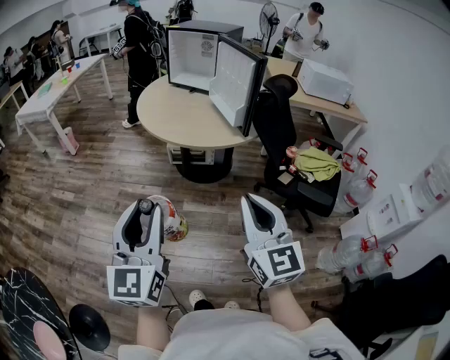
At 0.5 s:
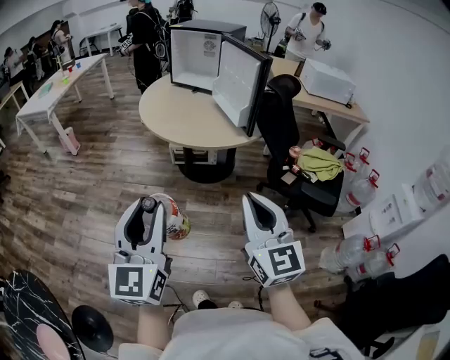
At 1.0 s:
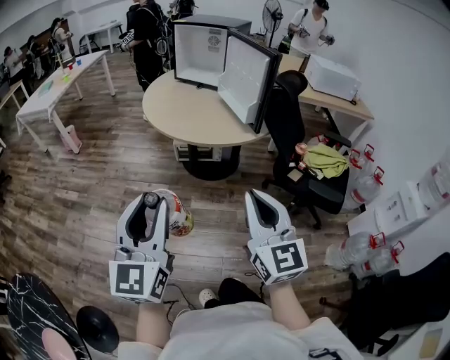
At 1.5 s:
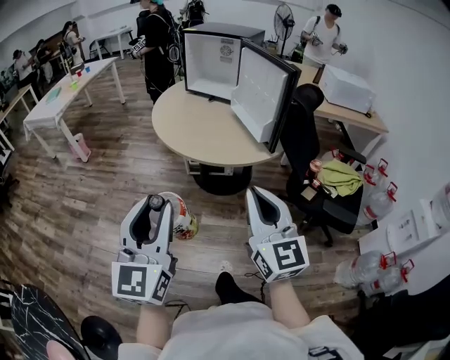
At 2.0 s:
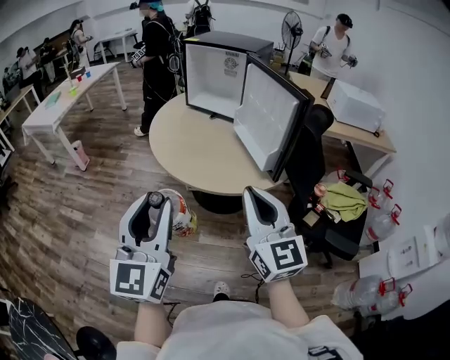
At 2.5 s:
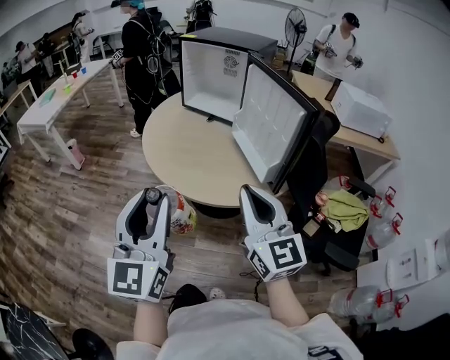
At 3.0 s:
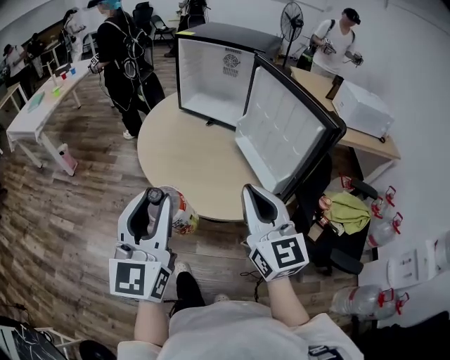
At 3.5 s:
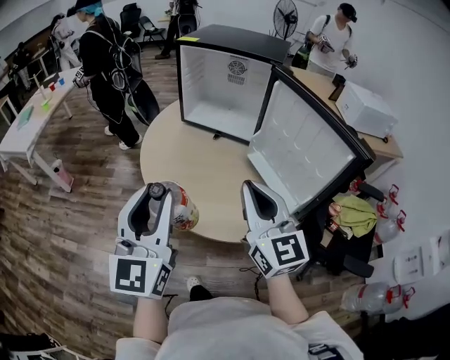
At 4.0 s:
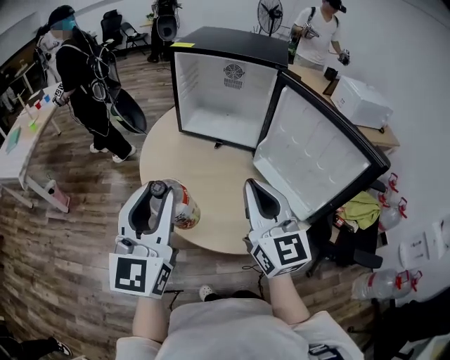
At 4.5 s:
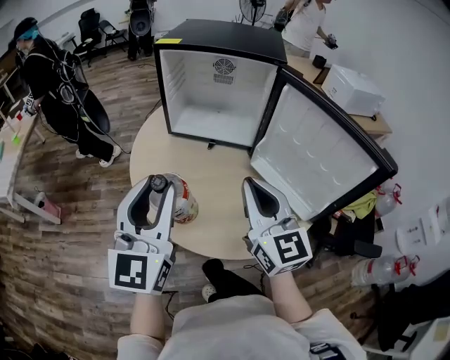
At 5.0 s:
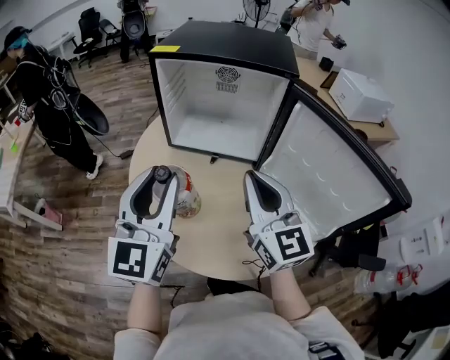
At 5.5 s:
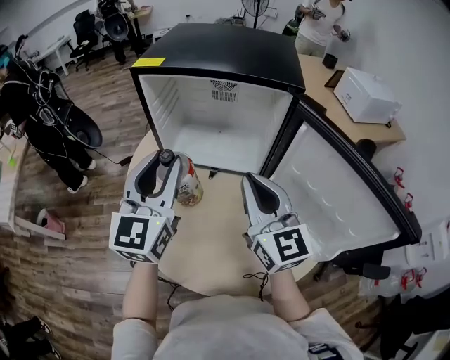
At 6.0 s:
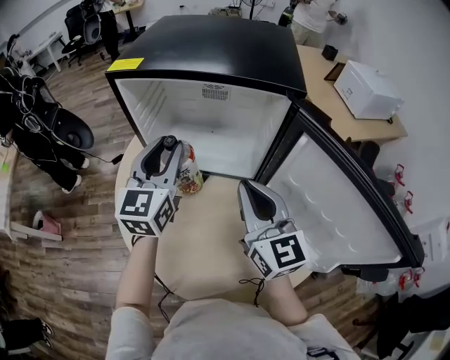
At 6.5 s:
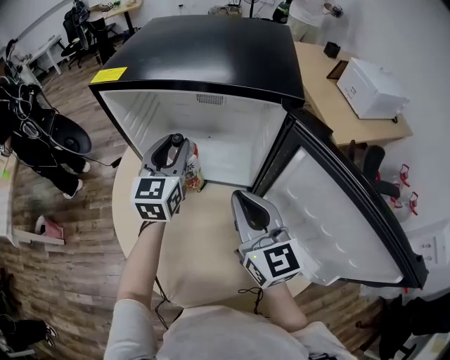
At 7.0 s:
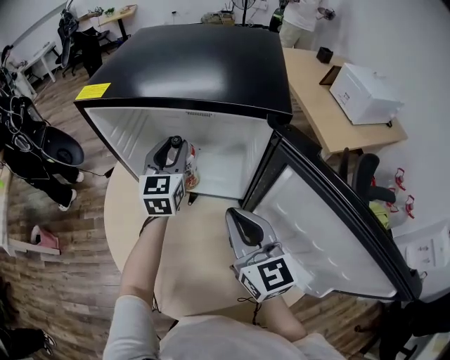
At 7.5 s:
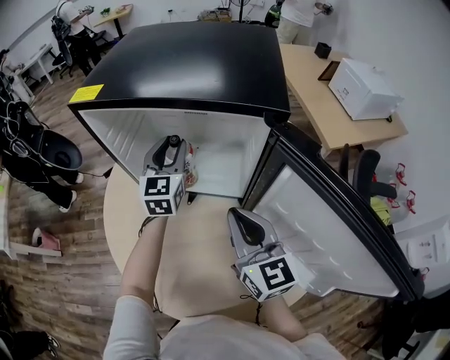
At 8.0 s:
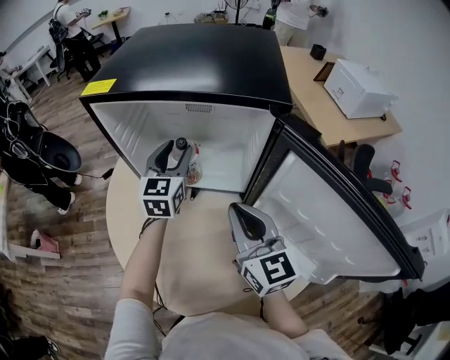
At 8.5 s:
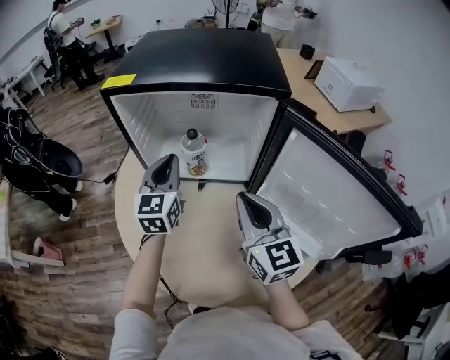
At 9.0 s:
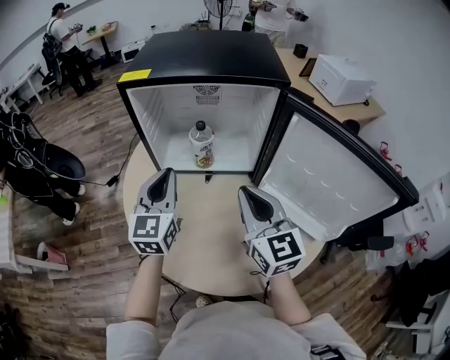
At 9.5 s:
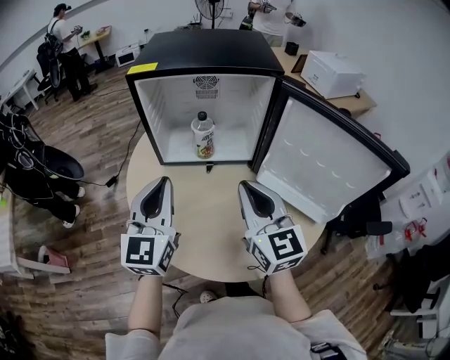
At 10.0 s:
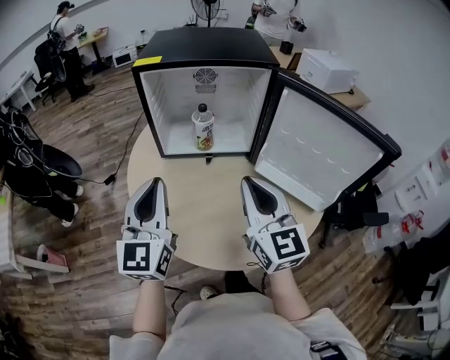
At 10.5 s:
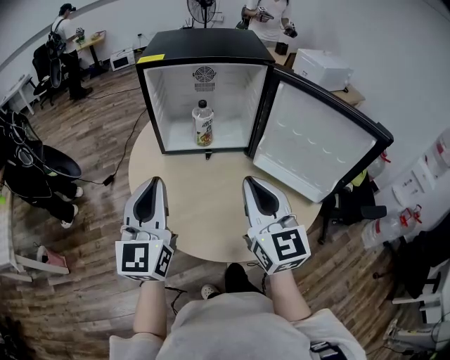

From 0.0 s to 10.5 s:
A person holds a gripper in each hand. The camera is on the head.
From 0.0 s to 2.0 s: The two grippers go about 25 cm forward.
From 2.0 s to 4.0 s: The two grippers go about 35 cm forward.
From 4.0 s to 6.5 s: The right gripper is displaced forward by roughly 30 cm; the left gripper travels forward by roughly 50 cm.
From 6.5 s to 8.5 s: The left gripper ends up about 5 cm from where it was, and closes.
From 8.5 s to 10.5 s: The right gripper moves backward, approximately 20 cm. Meanwhile the left gripper moves backward, approximately 30 cm.

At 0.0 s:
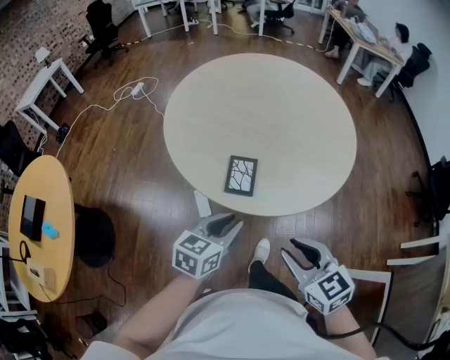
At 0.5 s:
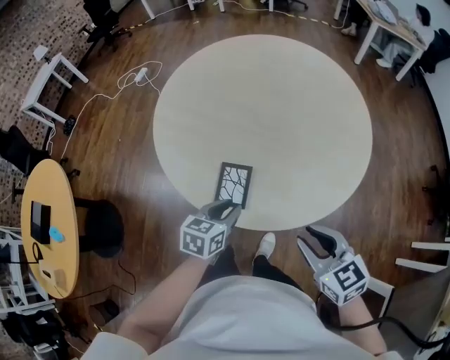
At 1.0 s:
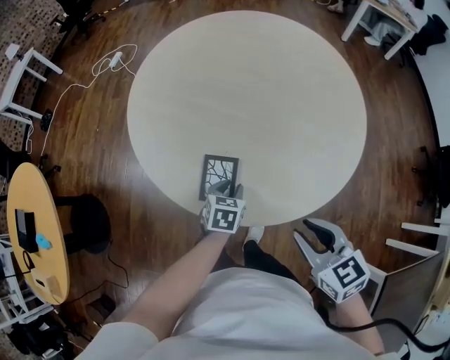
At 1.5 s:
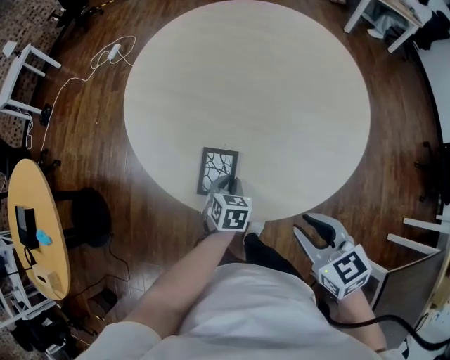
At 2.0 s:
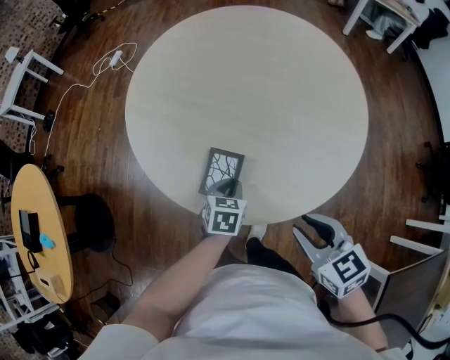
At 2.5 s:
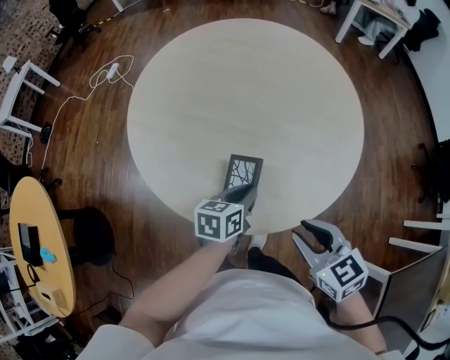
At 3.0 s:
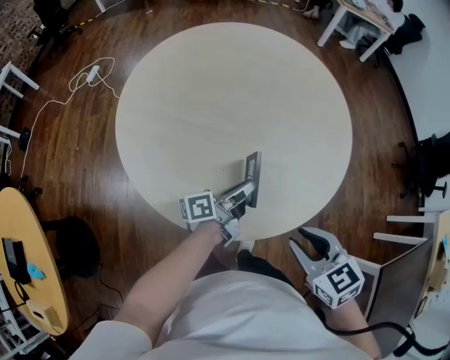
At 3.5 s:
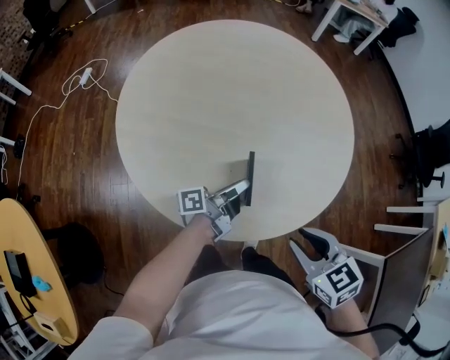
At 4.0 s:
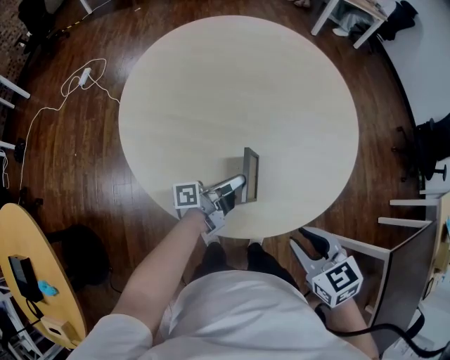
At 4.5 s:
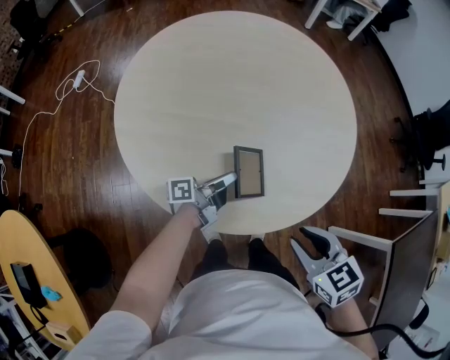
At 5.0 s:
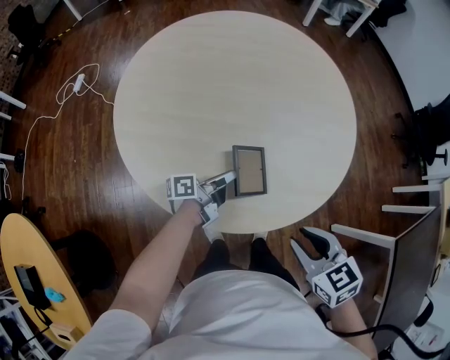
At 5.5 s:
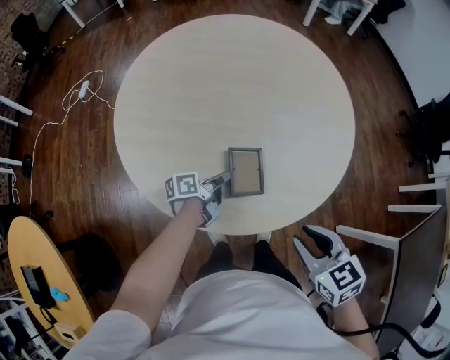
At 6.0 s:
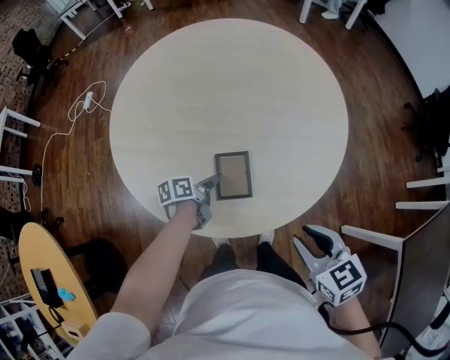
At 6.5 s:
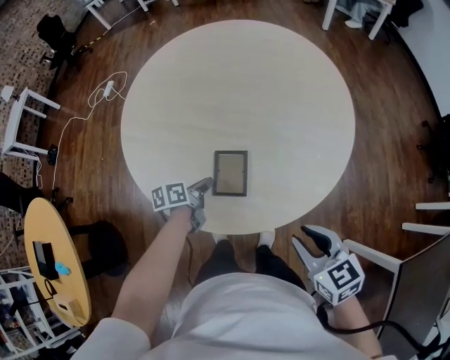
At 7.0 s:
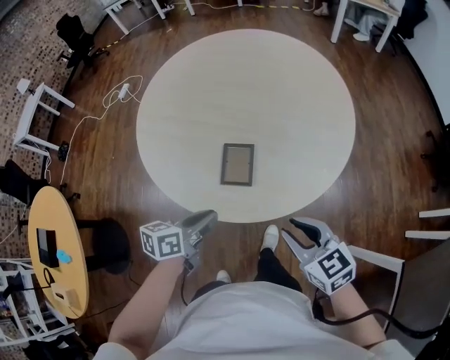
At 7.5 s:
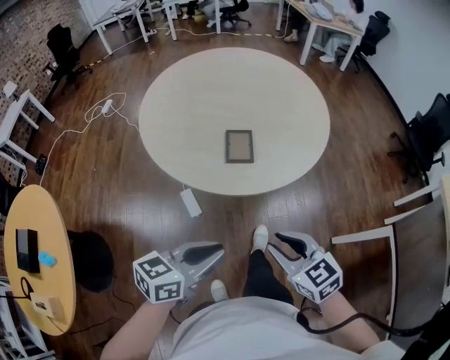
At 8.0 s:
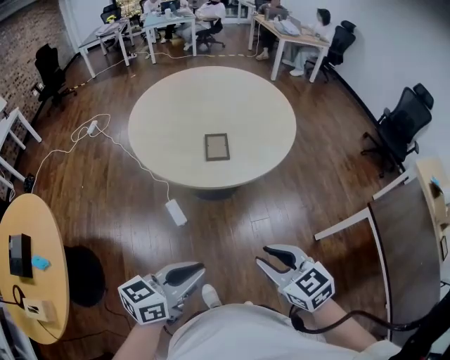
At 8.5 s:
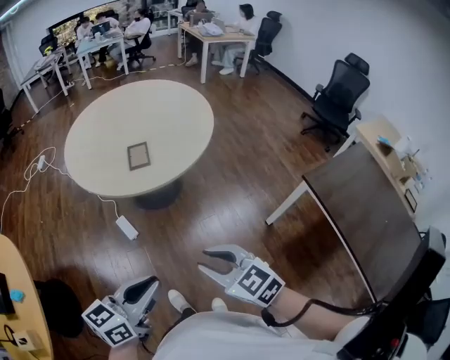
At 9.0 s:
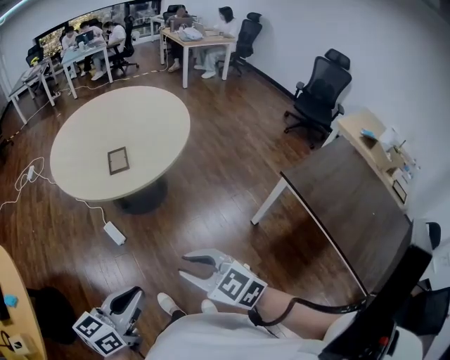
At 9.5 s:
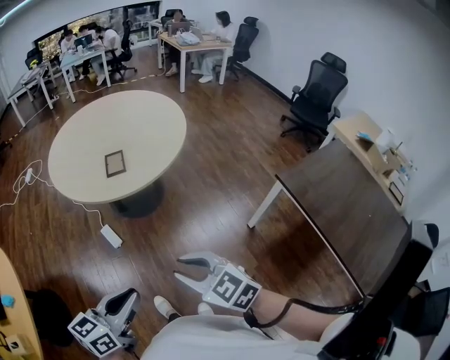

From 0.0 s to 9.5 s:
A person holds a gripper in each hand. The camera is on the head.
From 0.0 s to 2.0 s: The left gripper shifts roughly 20 cm downward, forward and to the right, and swivels approximately 30 degrees, while the right gripper travels forward and to the right by approximately 15 cm.
From 2.0 s to 4.0 s: The right gripper moves roughly 5 cm; the left gripper goes some 5 cm upward, and points its fingers roughly 60 degrees further upward.
From 4.0 s to 5.5 s: The left gripper goes roughly 5 cm downward, and swivels approximately 30 degrees.
From 5.5 s to 7.5 s: The right gripper heads backward, covering approximately 15 cm; the left gripper is displaced backward and upward by some 40 cm, and rolls clockwise, seen from behind, by about 50 degrees.
From 7.5 s to 9.5 s: The two grippers go about 20 cm backward.

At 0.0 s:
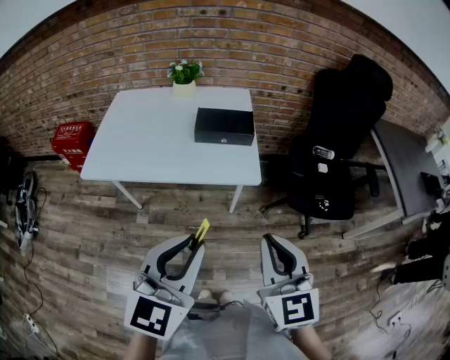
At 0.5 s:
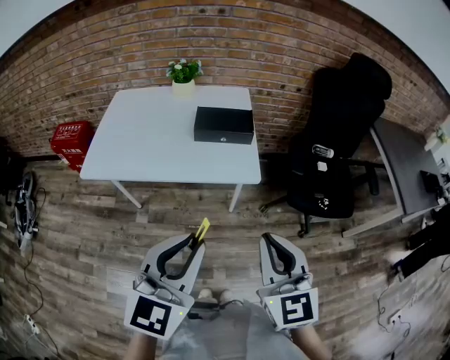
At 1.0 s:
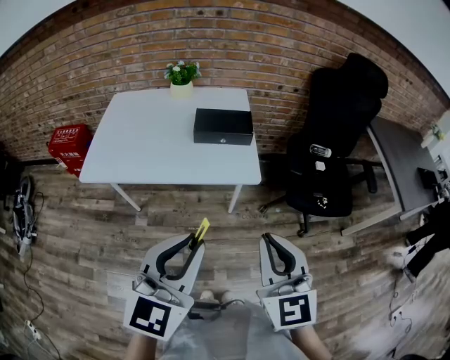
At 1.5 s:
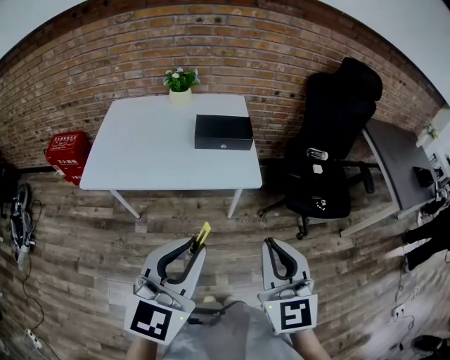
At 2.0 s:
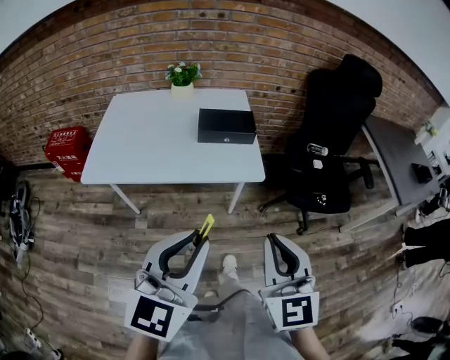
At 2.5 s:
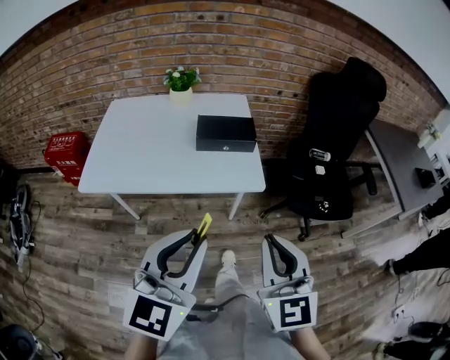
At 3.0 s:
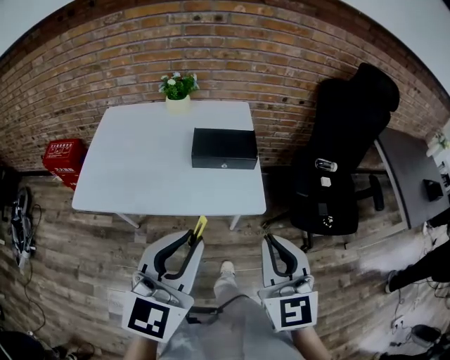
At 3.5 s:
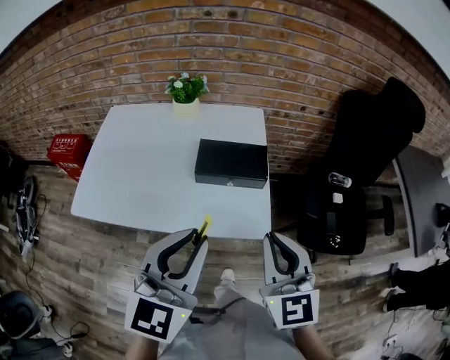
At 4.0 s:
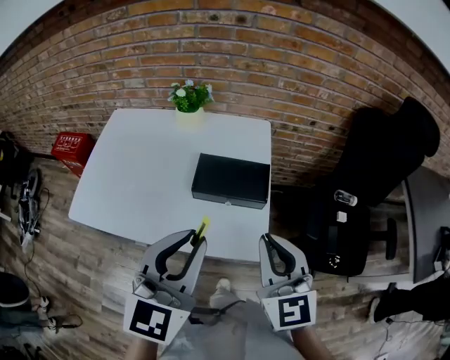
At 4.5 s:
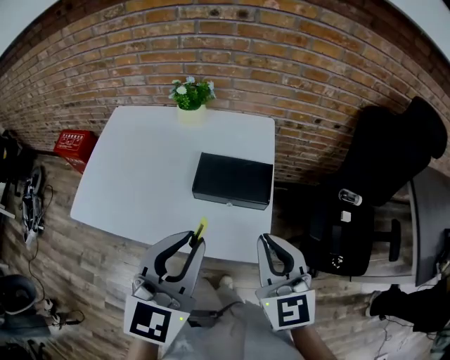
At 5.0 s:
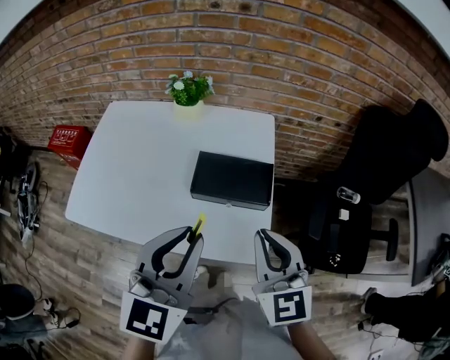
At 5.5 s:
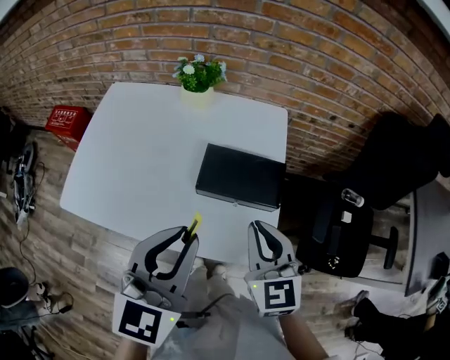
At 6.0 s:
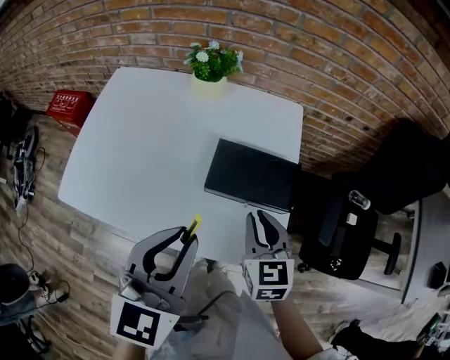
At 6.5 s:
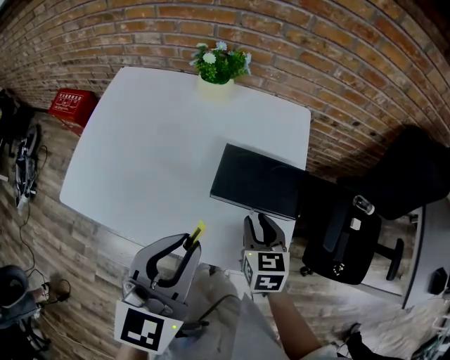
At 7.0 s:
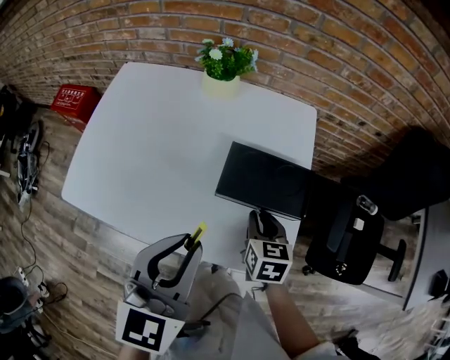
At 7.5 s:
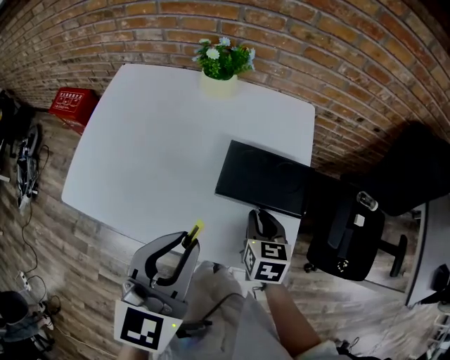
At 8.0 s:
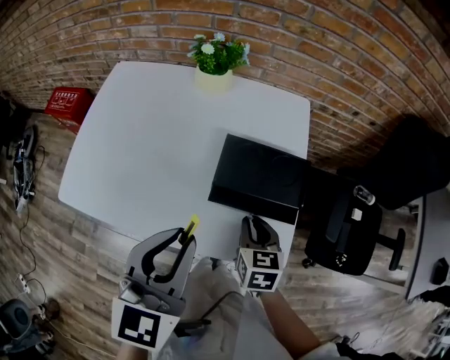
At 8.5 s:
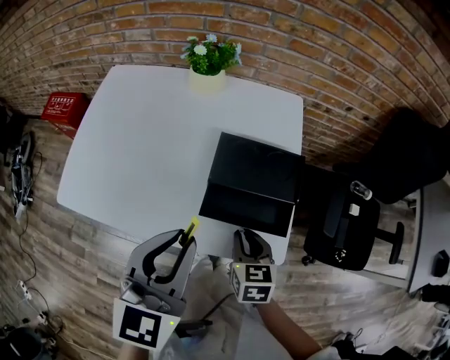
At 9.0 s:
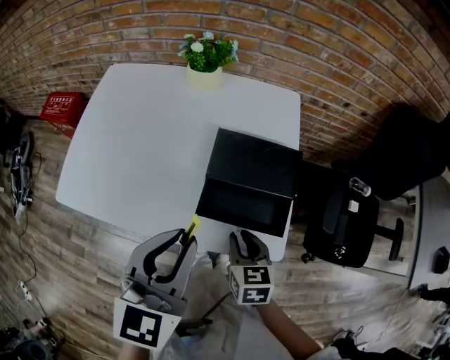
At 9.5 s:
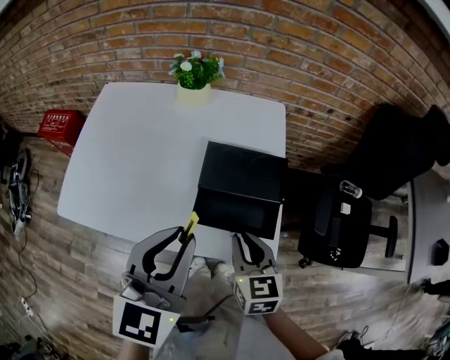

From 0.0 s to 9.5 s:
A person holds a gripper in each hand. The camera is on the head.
From 0.0 s to 2.0 s: The right gripper ends up some 5 cm from where it was. The left gripper moves to the left, approximately 5 cm.
From 2.0 s to 4.0 s: Both grippers move forward, roughly 35 cm.
From 4.0 s to 5.5 s: The left gripper moves forward, roughly 5 cm. Meanwhile the right gripper shifts approximately 15 cm forward and downward.
From 5.5 s to 7.5 s: The left gripper is displaced to the left and downward by approximately 10 cm. The right gripper moves downward, approximately 15 cm, and turns by approximately 30 degrees.
From 7.5 s to 9.5 s: The right gripper travels backward and upward by approximately 10 cm.
